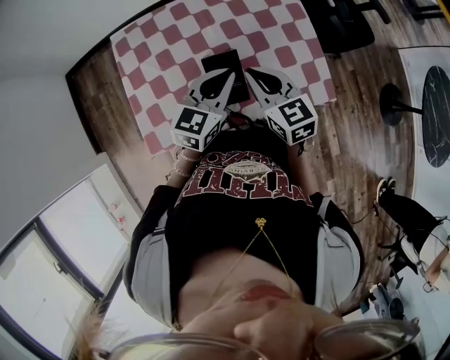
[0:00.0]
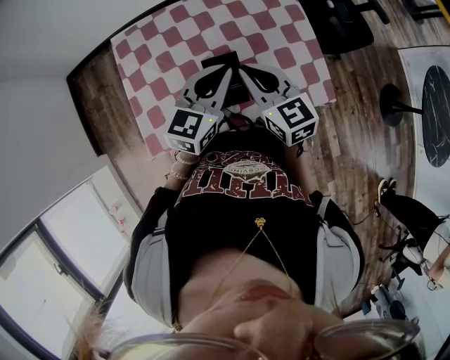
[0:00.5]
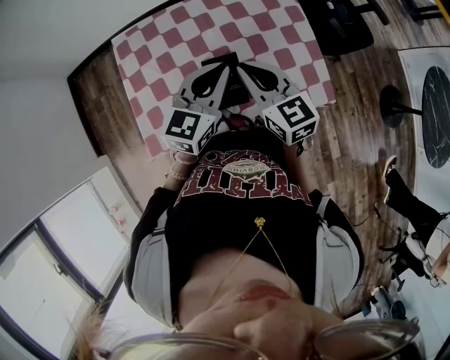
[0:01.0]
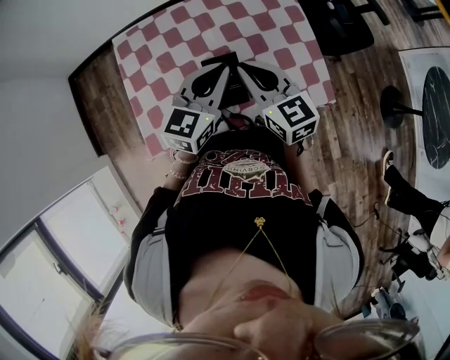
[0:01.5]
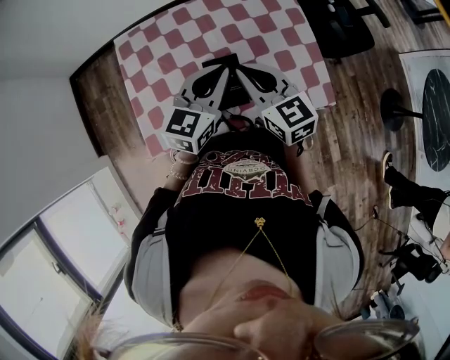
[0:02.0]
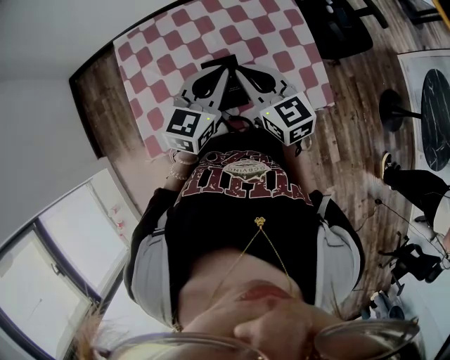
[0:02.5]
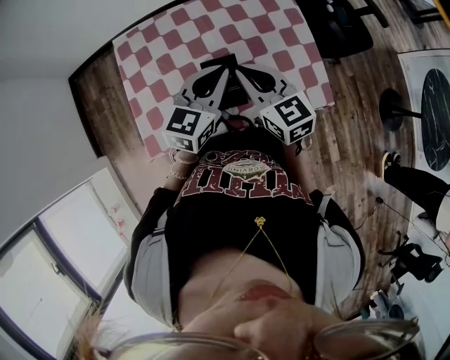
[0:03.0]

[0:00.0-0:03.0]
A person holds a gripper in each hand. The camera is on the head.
0:00.0 to 0:01.5: The grippers stay close to where they were, moving slightly.
0:01.5 to 0:03.0: The two grippers keep their place.

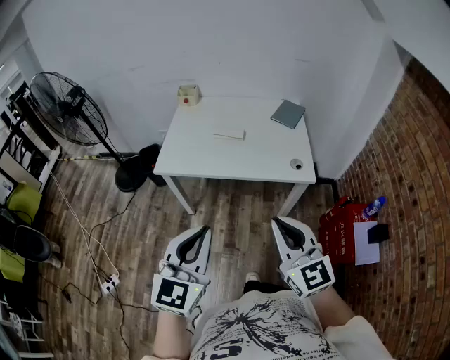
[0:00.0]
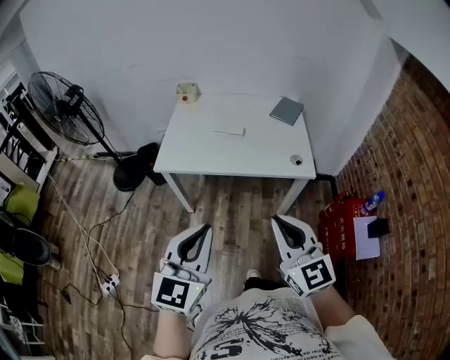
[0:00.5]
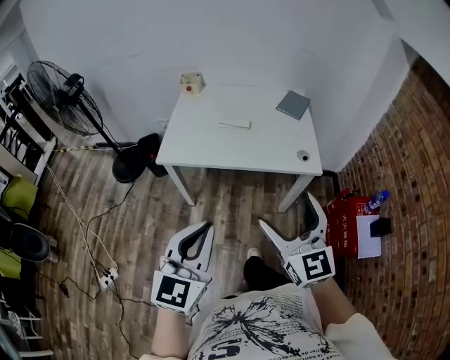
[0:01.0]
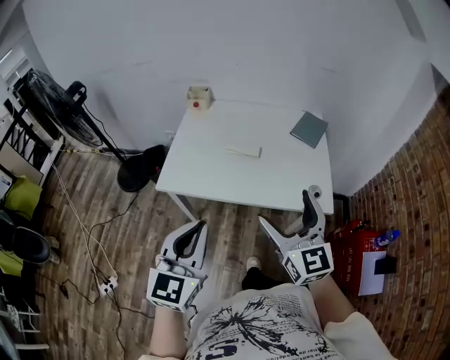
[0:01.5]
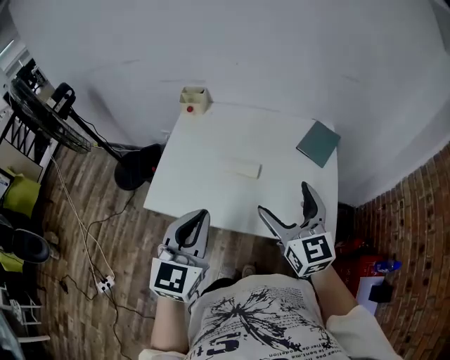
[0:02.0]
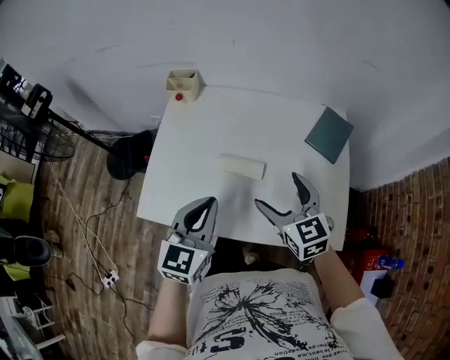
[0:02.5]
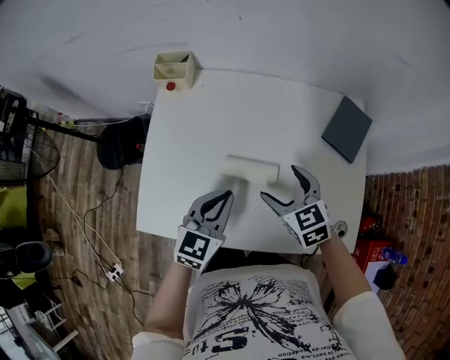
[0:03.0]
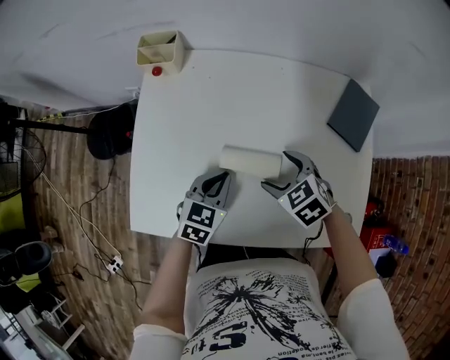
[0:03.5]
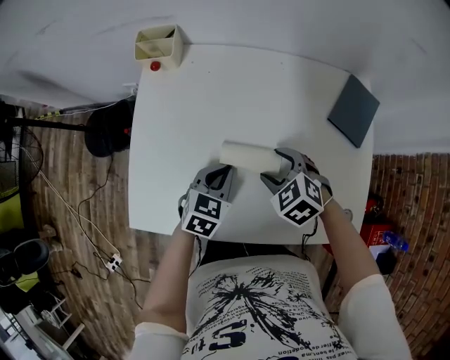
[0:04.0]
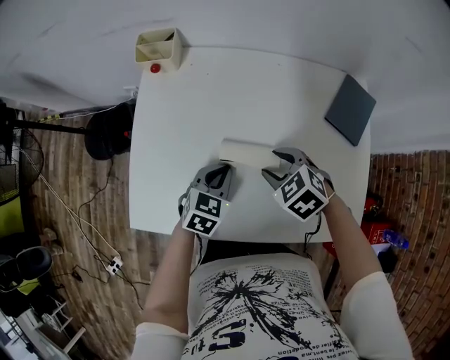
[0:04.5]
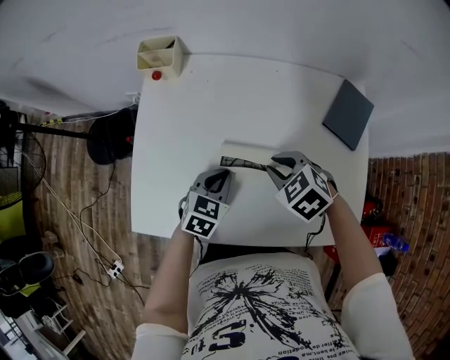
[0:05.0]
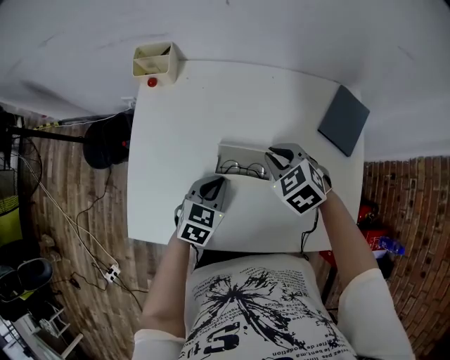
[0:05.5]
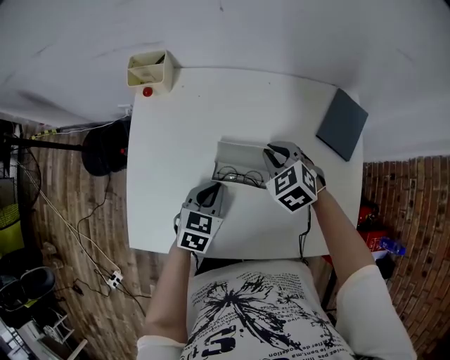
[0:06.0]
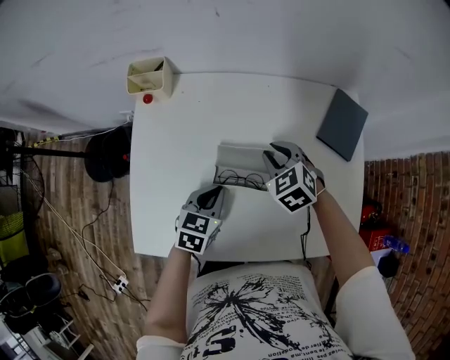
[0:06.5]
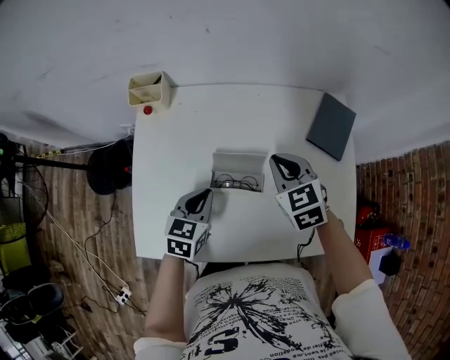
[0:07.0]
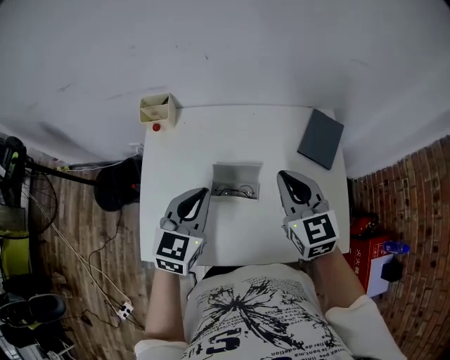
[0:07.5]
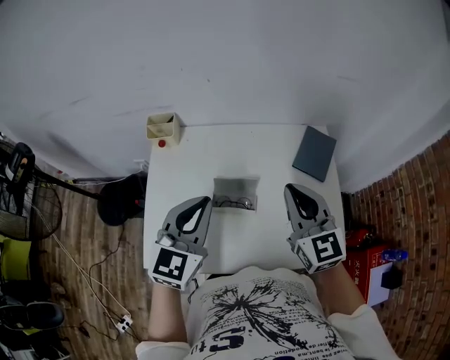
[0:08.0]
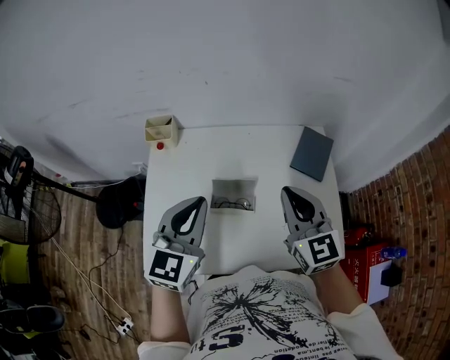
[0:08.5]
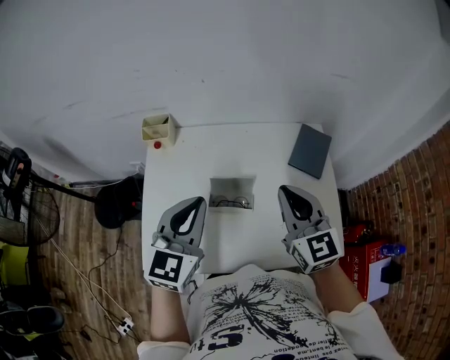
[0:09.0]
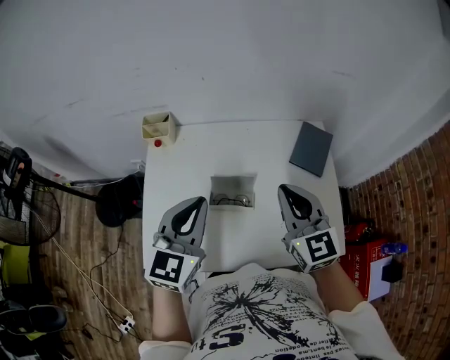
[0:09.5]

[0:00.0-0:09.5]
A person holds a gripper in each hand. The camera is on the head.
0:00.0 to 0:02.0: Both grippers travel together forward, about 35 cm. The right gripper opens up.
0:02.0 to 0:04.0: Both grippers move downward and forward, about 35 cm. The left gripper angles its fingers downward, by roughly 30 degrees; the right gripper tips its fingers downward by about 50 degrees, and closes.
0:04.0 to 0:05.5: The right gripper heads forward, covering approximately 5 cm, and closes.
0:05.5 to 0:07.5: The two grippers go roughly 20 cm upward. The right gripper tilts its fingers some 40 degrees upward; the left gripper rotates roughly 20 degrees.
0:07.5 to 0:09.5: The right gripper shifts about 5 cm upward. The left gripper travels upward by about 10 cm.

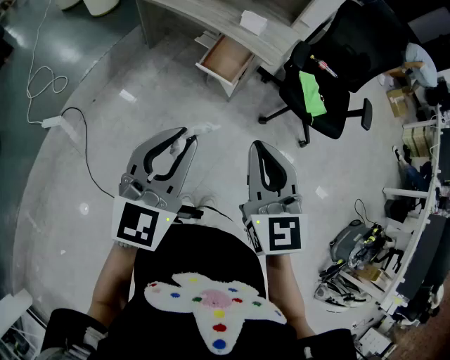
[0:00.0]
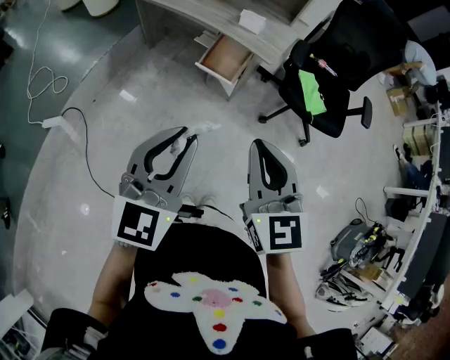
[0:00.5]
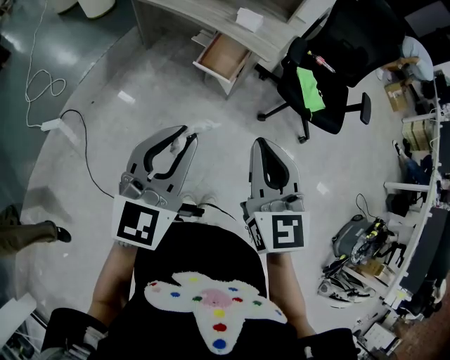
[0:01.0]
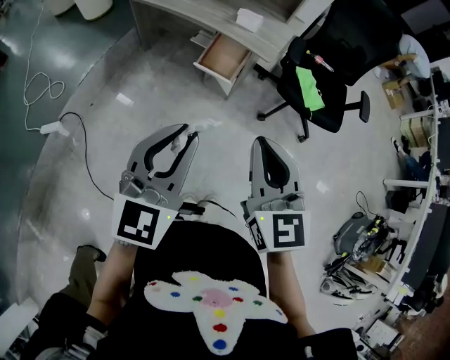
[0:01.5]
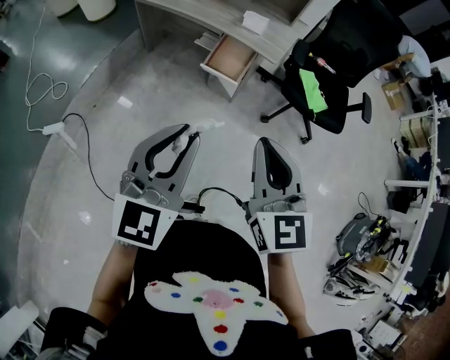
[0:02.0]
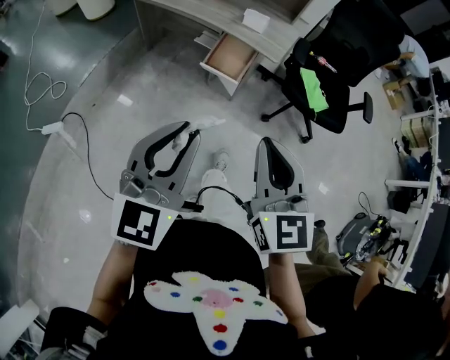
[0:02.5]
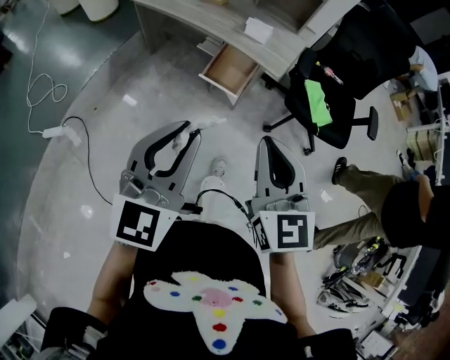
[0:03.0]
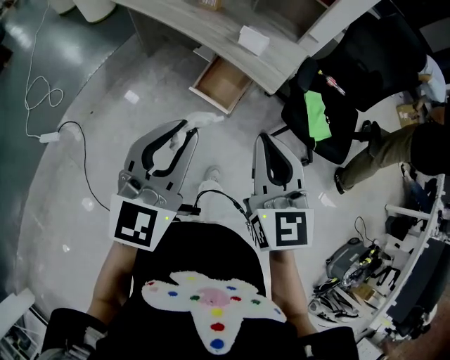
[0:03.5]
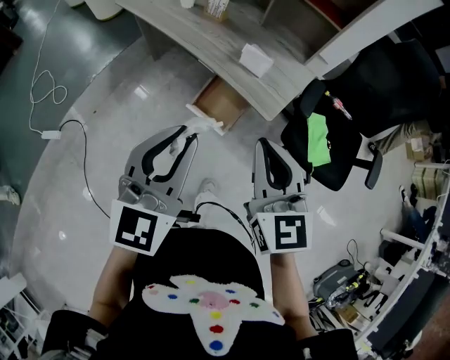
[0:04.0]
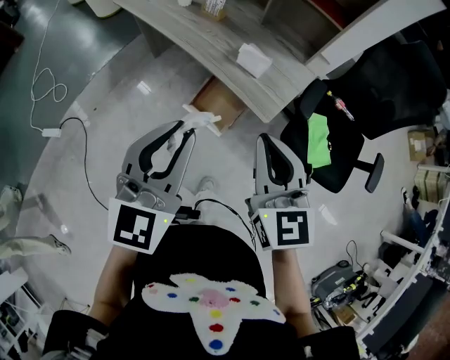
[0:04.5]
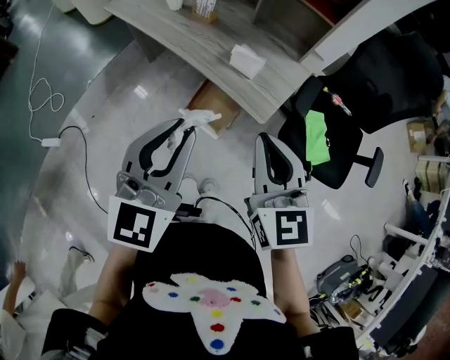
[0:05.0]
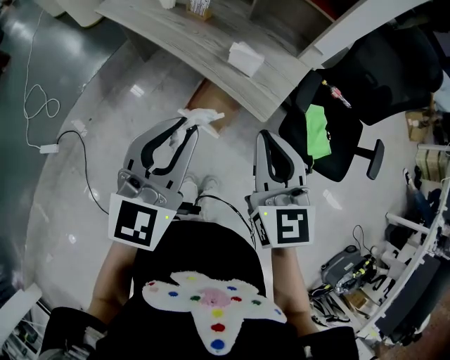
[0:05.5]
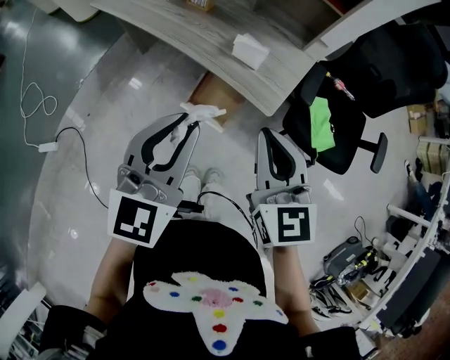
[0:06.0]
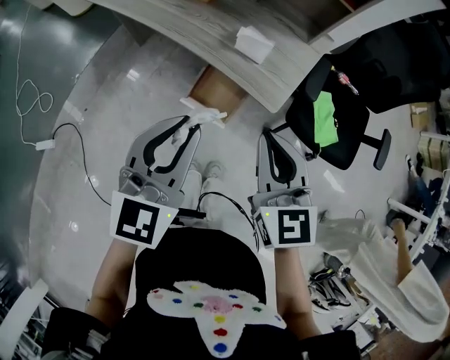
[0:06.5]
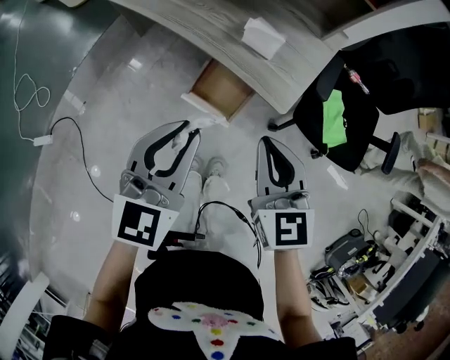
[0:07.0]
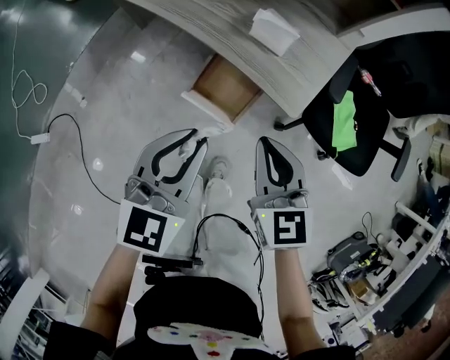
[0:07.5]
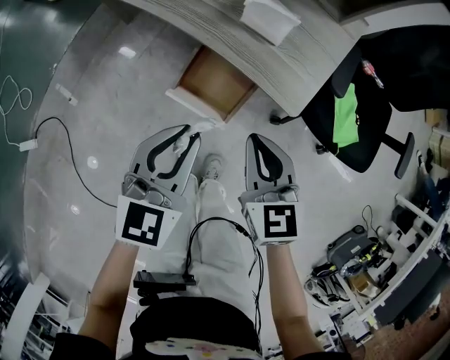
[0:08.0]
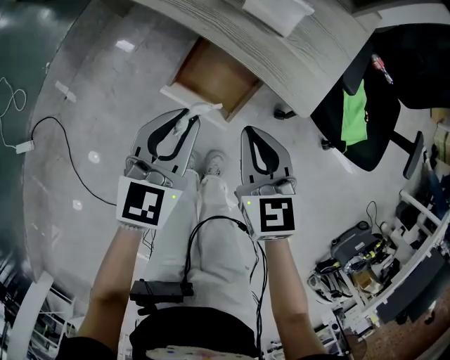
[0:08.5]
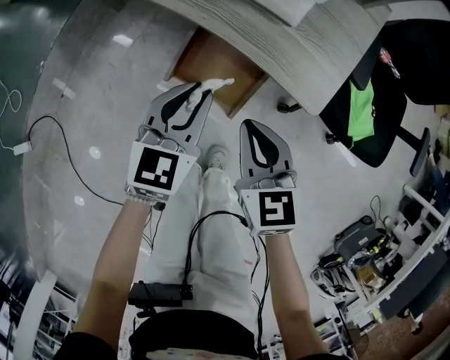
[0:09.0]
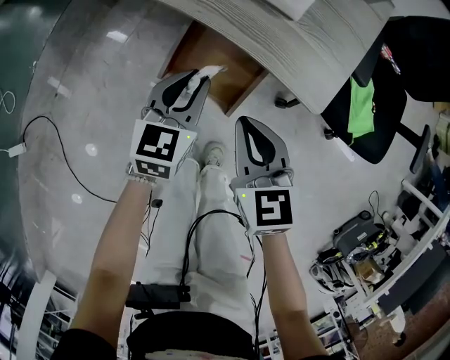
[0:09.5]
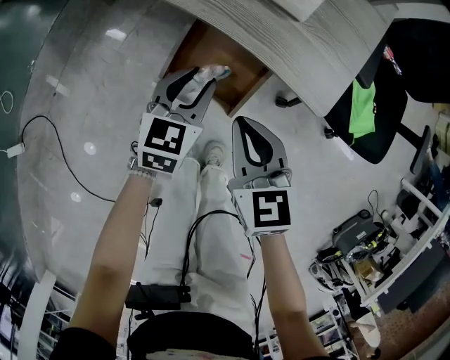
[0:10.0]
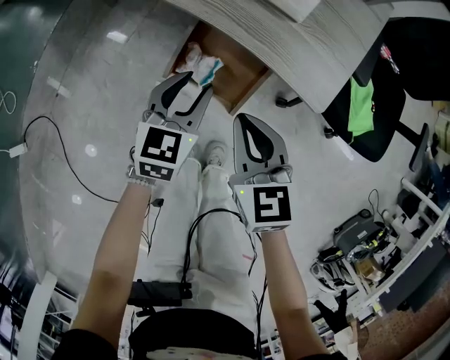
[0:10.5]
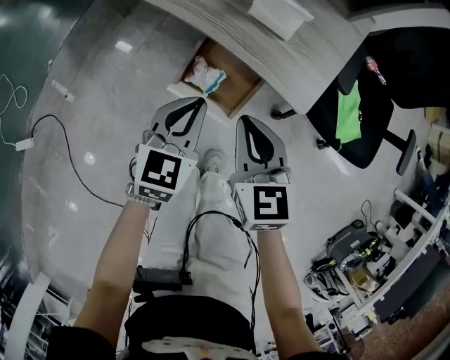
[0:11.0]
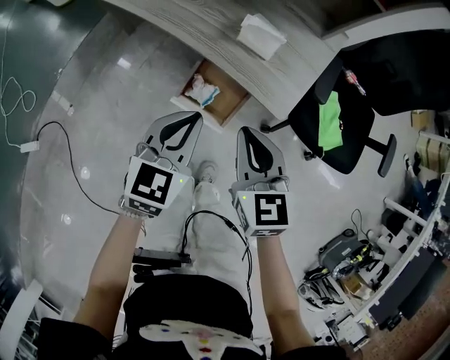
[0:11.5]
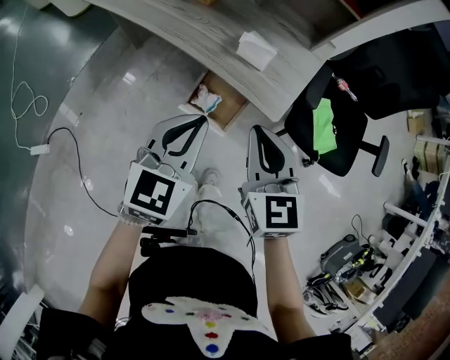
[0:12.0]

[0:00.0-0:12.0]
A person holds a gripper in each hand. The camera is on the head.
0:00.0 to 0:02.0: The grippers stay close to where they were, moving slightly.
0:02.0 to 0:04.0: The grippers both shift forward by approximately 25 cm.
0:04.0 to 0:06.0: The grippers both shift forward by approximately 5 cm.
0:06.0 to 0:08.0: The grippers both shift downward by approximately 20 cm.
0:08.0 to 0:10.0: The right gripper heads downward, covering about 10 cm, while the left gripper moves downward and forward, approximately 20 cm.
0:10.0 to 0:12.0: The grippers both shift upward by roughly 25 cm. The left gripper closes up.

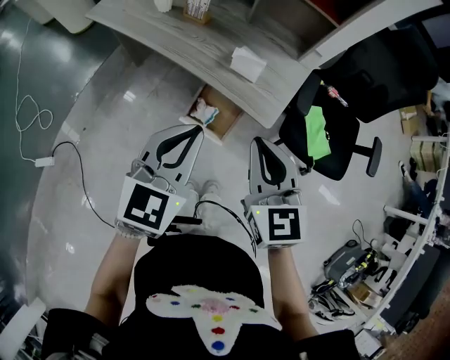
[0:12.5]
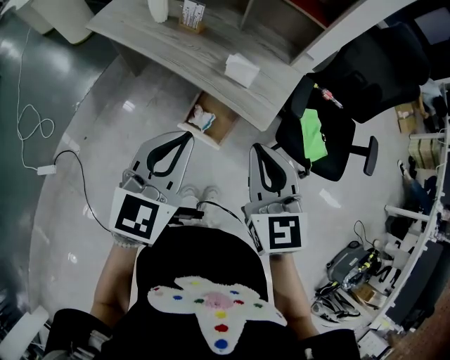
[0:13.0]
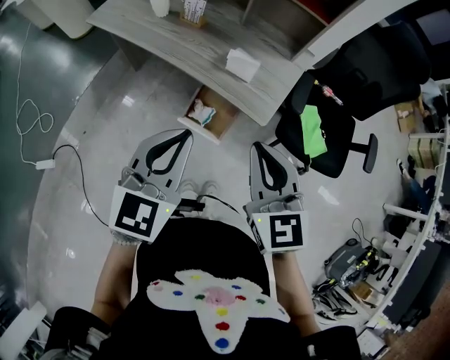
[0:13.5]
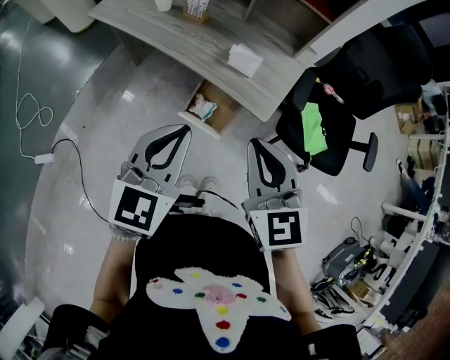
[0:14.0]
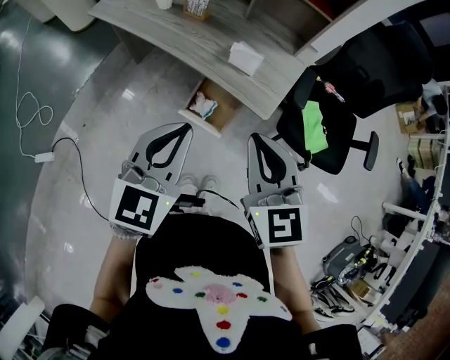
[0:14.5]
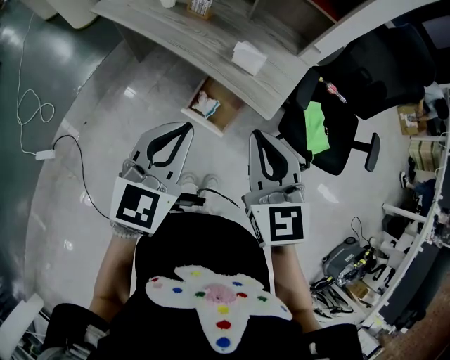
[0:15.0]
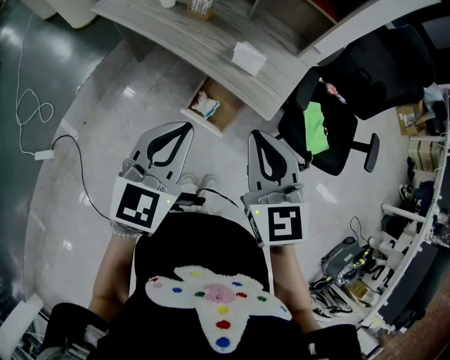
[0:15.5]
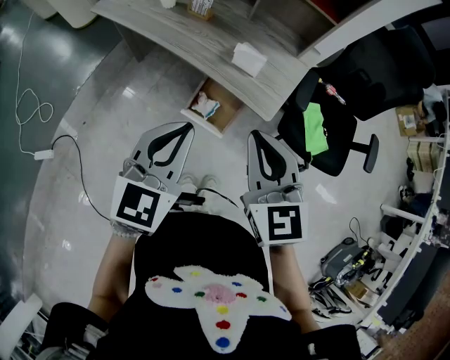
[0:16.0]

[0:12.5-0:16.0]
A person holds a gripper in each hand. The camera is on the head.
0:12.5 to 0:14.5: The grippers stay close to where they were, moving slightly.
0:14.5 to 0:16.0: The two grippers keep their place.
